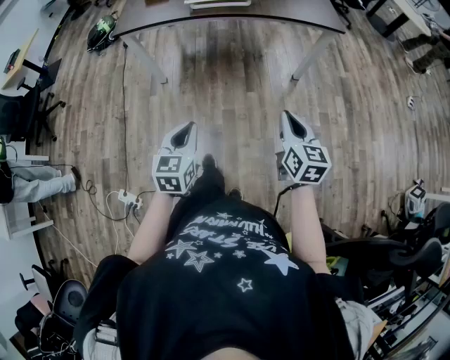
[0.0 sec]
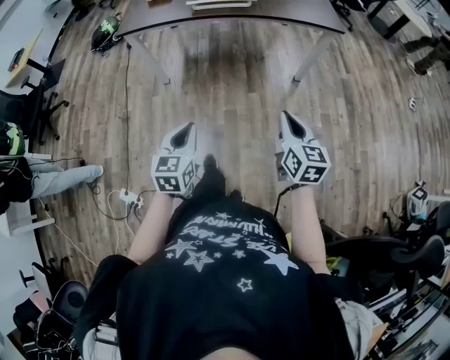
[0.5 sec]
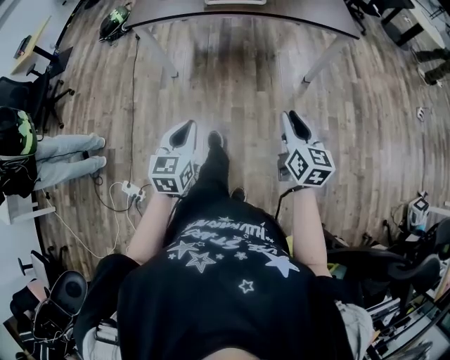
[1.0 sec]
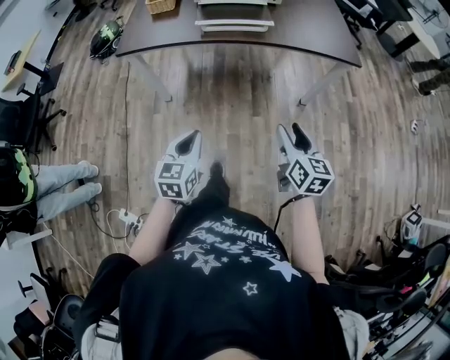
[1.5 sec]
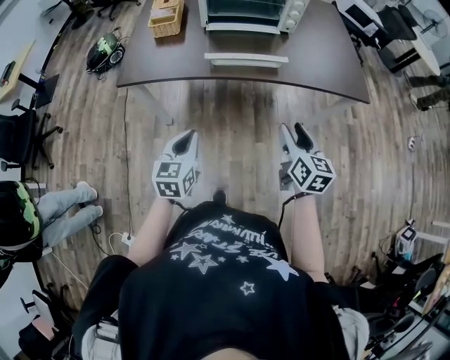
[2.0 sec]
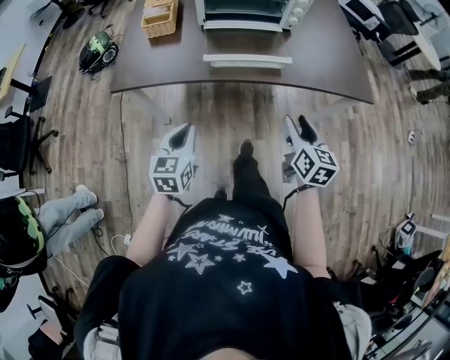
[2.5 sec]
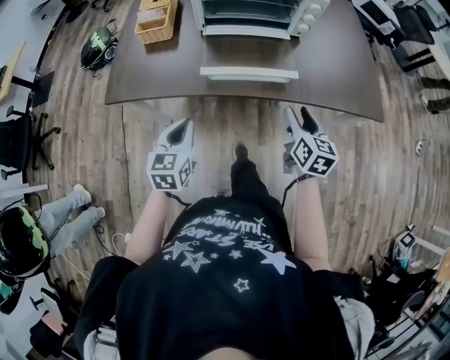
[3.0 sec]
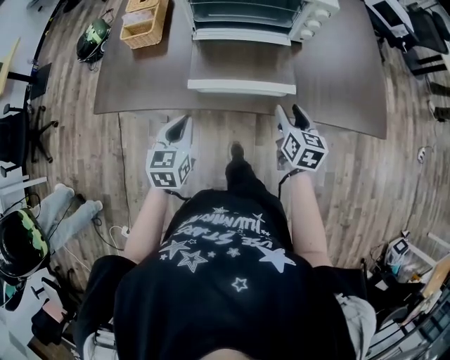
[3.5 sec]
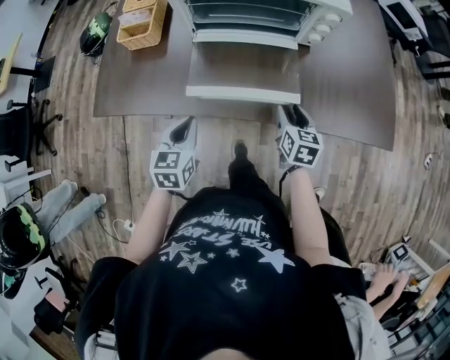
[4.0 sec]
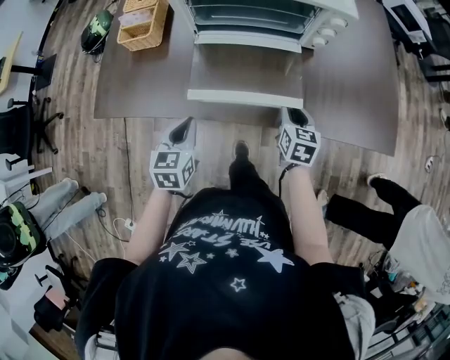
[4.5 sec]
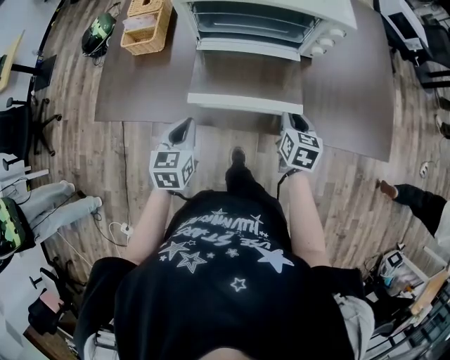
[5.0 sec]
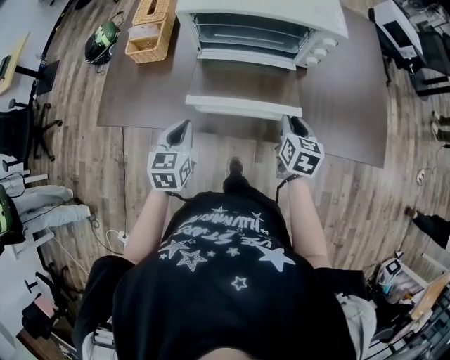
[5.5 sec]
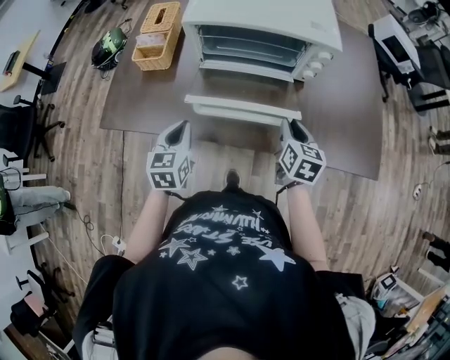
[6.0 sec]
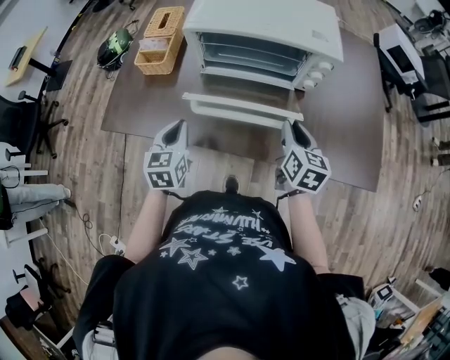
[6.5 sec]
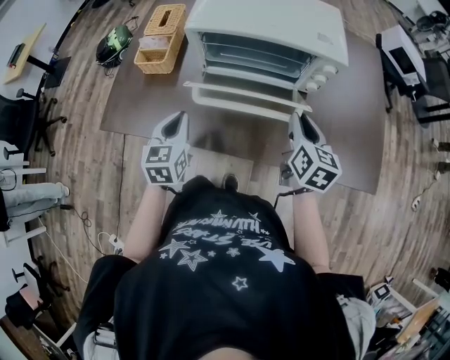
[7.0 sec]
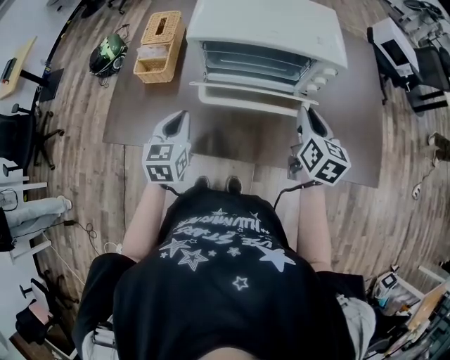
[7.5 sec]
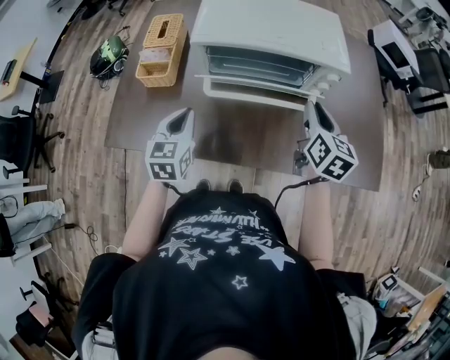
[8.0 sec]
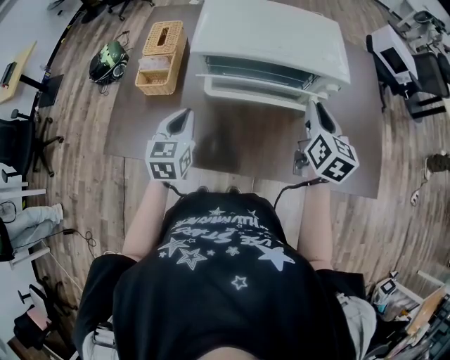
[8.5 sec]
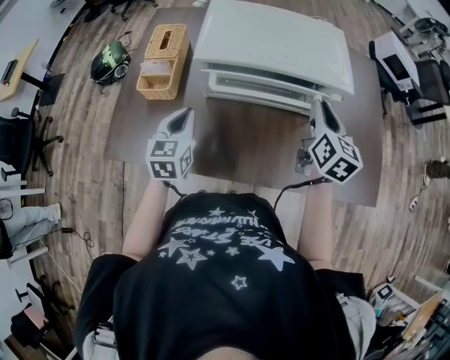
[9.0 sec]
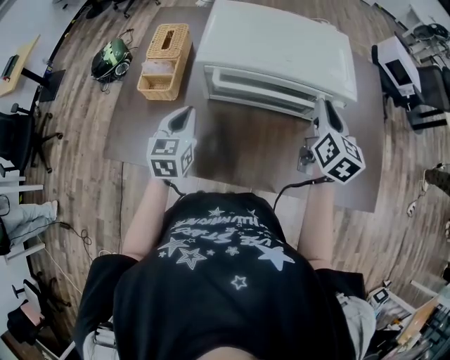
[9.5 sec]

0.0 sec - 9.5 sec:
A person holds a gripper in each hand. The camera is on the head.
0.0 sec - 2.0 sec: The grippers both shift forward by approximately 30 cm. The right gripper opens its fingers.
2.0 sec - 4.0 sec: The left gripper heads forward, covering approximately 25 cm; the right gripper heads forward and downward, covering approximately 35 cm.
4.0 sec - 5.5 sec: The right gripper moves some 5 cm, and closes.
5.5 sec - 7.5 sec: The right gripper travels upward and forward by some 15 cm, while the left gripper heads forward and upward, covering some 10 cm.
7.5 sec - 9.5 sec: The right gripper moves forward and upward, some 10 cm, while the left gripper goes approximately 10 cm forward.

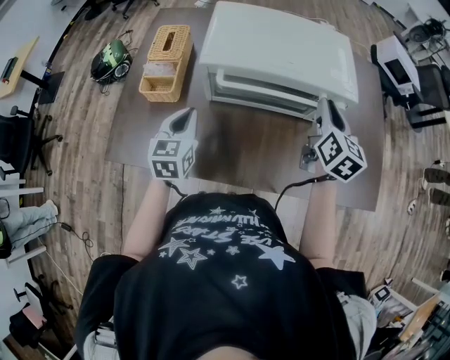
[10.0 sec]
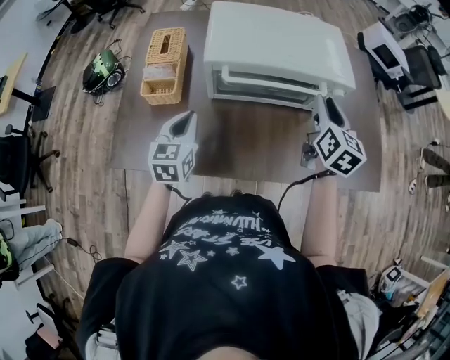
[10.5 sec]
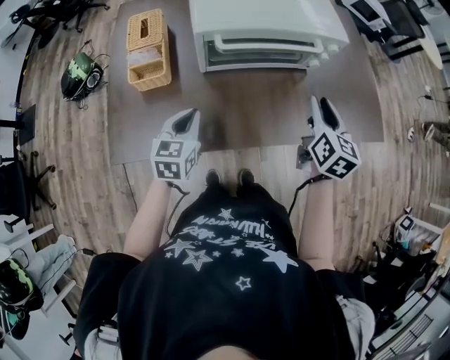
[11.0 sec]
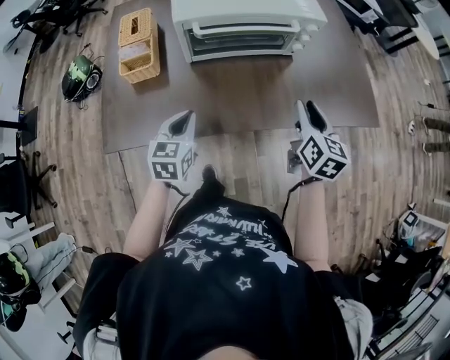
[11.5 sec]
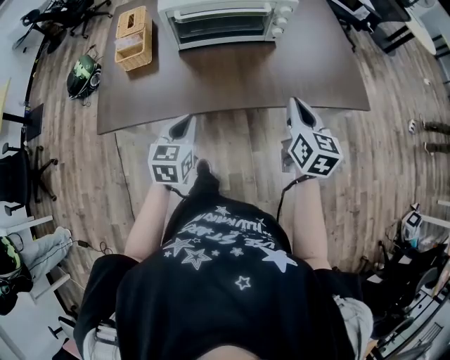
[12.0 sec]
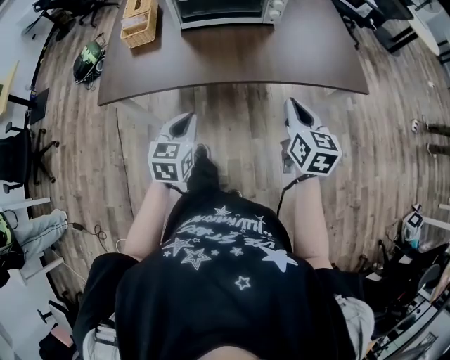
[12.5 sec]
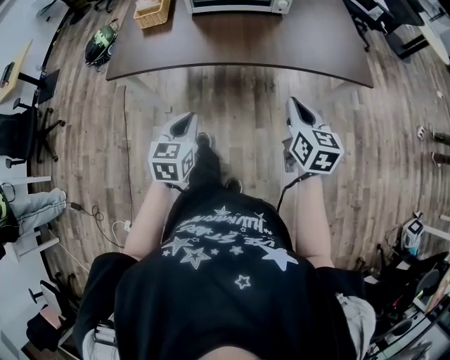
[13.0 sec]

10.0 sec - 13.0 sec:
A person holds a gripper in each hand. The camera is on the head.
10.0 sec - 11.5 sec: The right gripper shifts approximately 25 cm backward. Meanwhile the left gripper moves backward, approximately 15 cm.
11.5 sec - 13.0 sec: Both grippers travel together backward, about 25 cm. The right gripper closes its fingers.

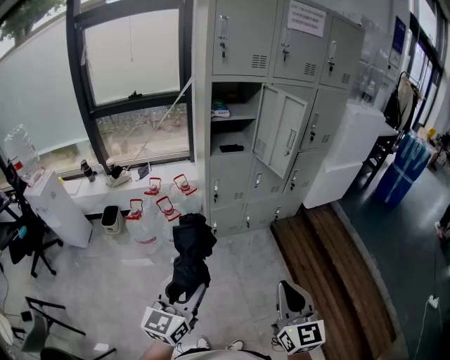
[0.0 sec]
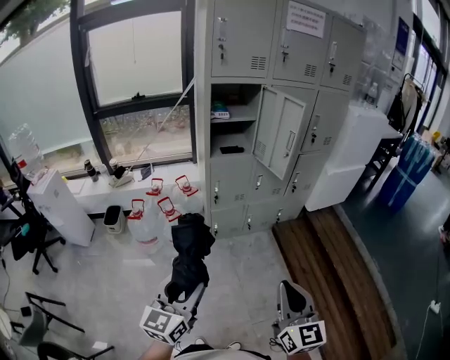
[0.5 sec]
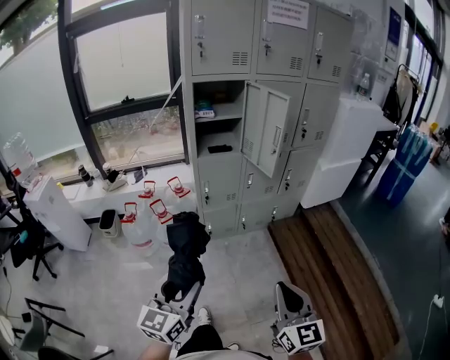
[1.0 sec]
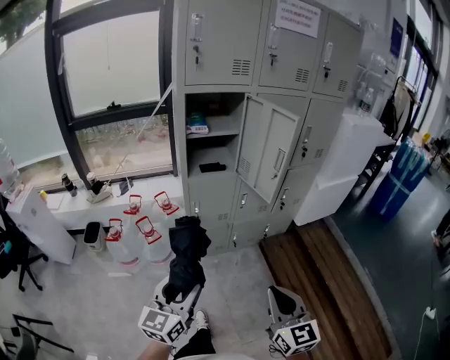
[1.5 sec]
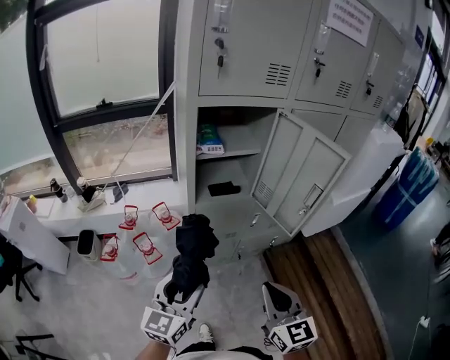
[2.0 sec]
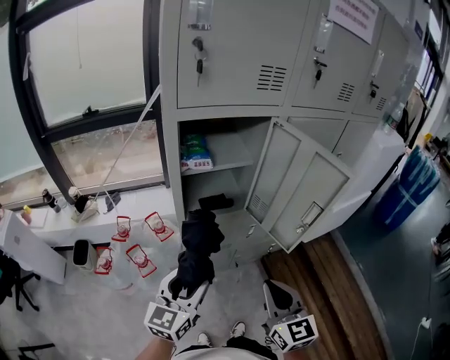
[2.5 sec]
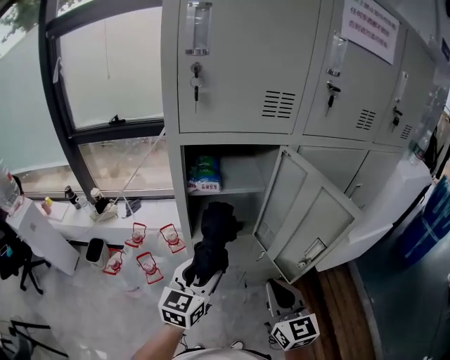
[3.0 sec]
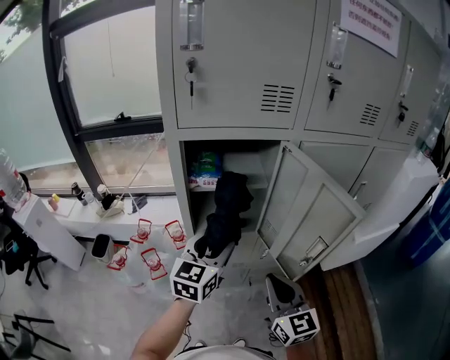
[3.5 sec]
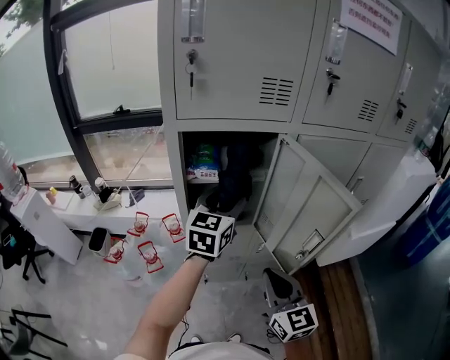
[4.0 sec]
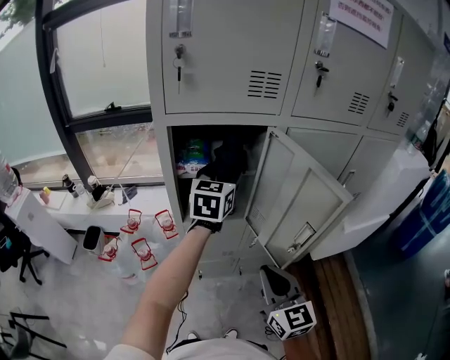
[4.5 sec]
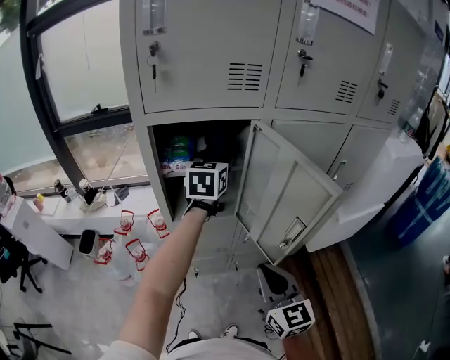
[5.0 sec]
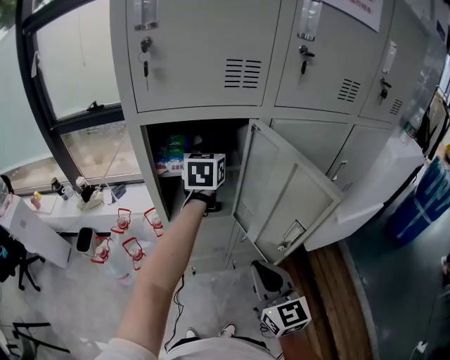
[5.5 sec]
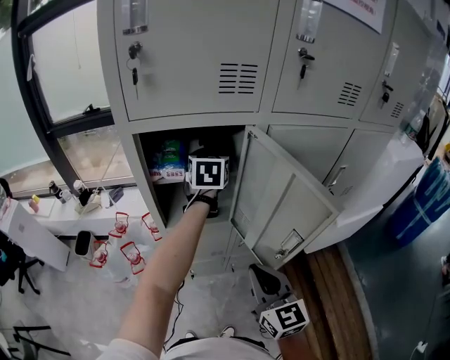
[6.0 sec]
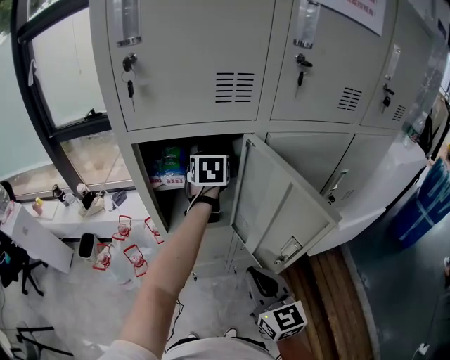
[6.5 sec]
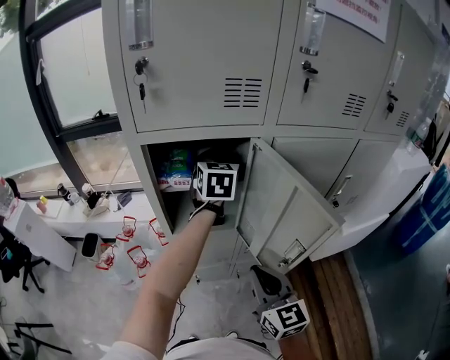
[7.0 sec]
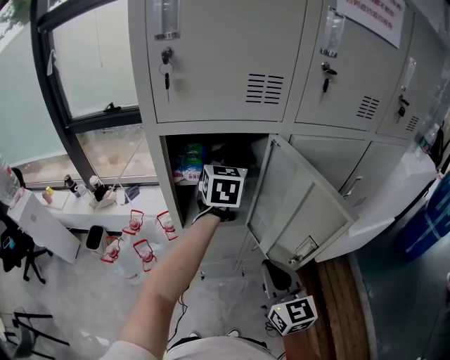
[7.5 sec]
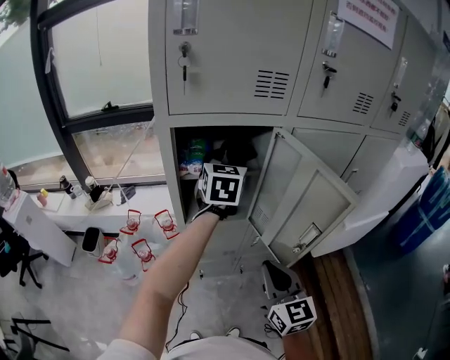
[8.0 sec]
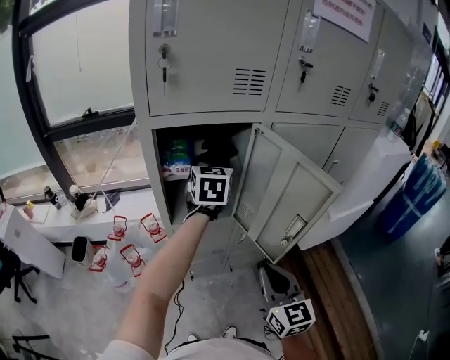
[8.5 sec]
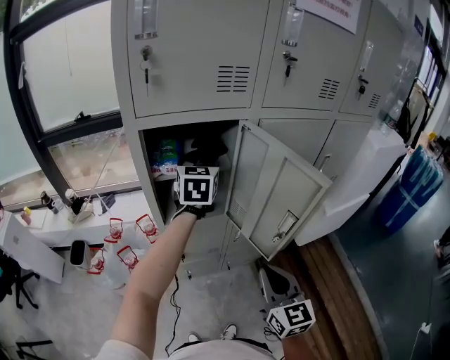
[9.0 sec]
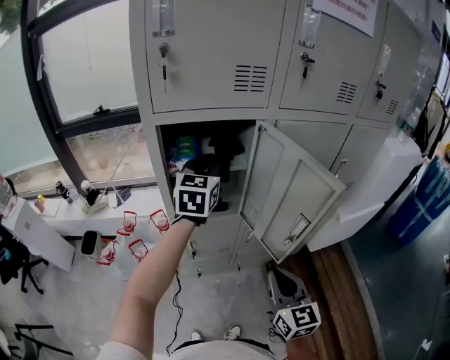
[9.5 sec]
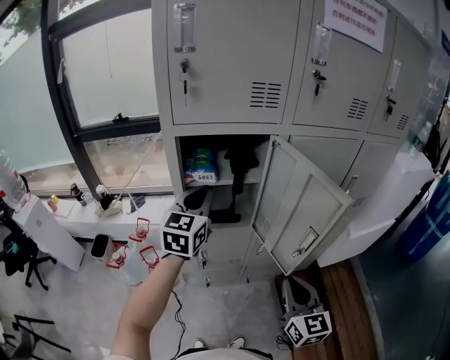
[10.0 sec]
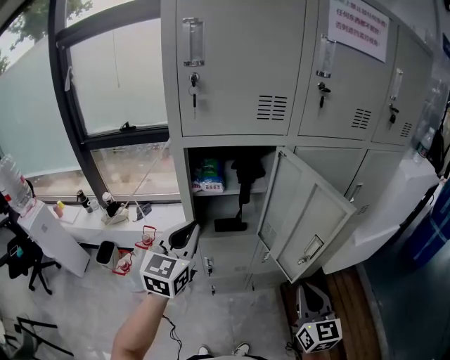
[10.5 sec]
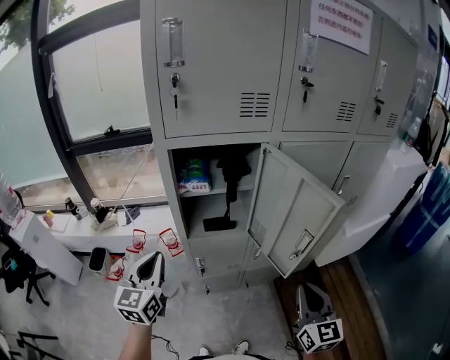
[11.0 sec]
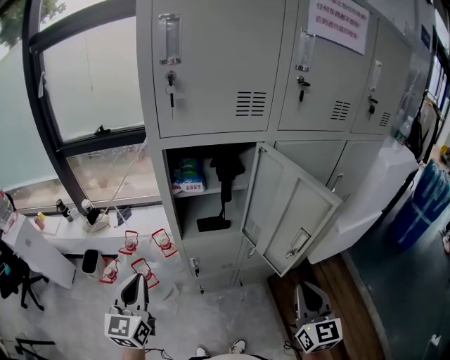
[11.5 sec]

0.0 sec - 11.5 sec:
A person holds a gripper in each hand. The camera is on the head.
0.0 sec - 2.0 sec: Both grippers travel together forward, some 35 cm.
2.0 sec - 4.0 sec: The right gripper heads forward, covering approximately 15 cm, while the left gripper shifts some 35 cm forward and to the right.
4.0 sec - 6.0 sec: The left gripper moves forward, about 15 cm.
6.0 sec - 7.5 sec: The left gripper changes place by approximately 5 cm.
7.5 sec - 9.5 sec: Both grippers move backward, about 5 cm. The left gripper closes.
9.5 sec - 11.5 sec: The left gripper heads backward and to the left, covering approximately 35 cm, while the right gripper moves some 5 cm.

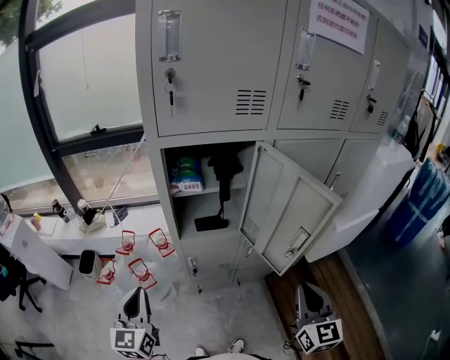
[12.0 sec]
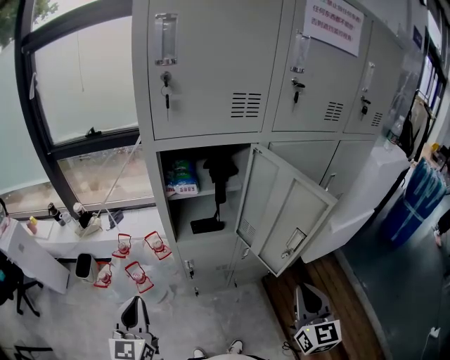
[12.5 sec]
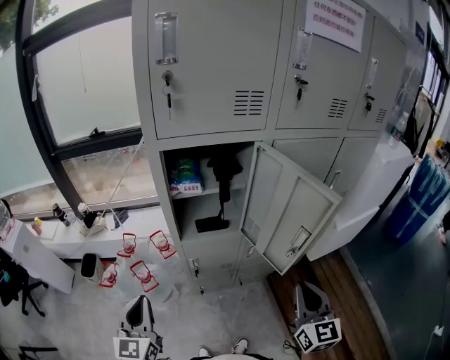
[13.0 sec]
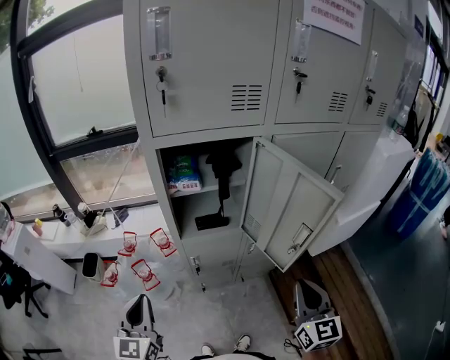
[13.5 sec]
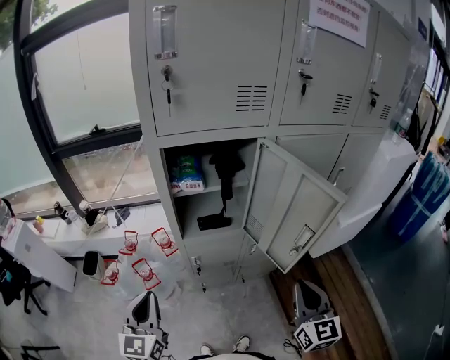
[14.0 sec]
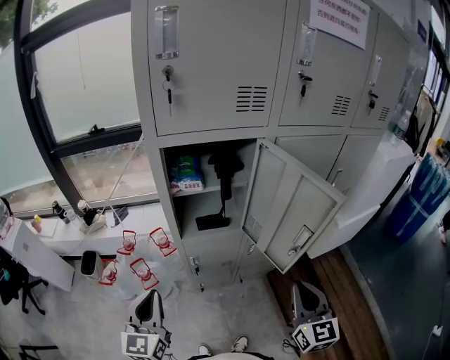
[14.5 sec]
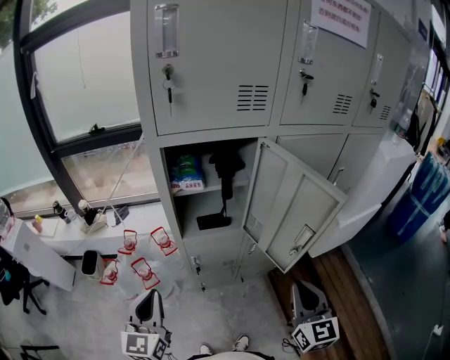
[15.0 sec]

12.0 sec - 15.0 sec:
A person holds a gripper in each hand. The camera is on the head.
12.0 sec - 15.0 sec: The grippers stay close to where they were, moving slightly.
